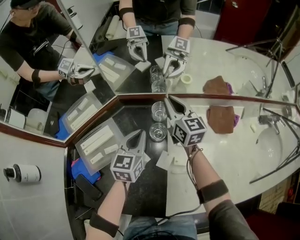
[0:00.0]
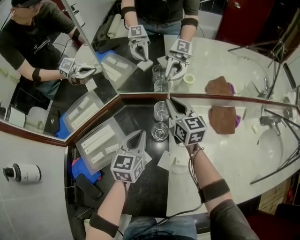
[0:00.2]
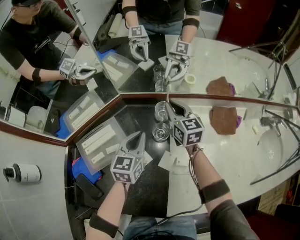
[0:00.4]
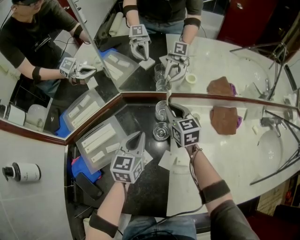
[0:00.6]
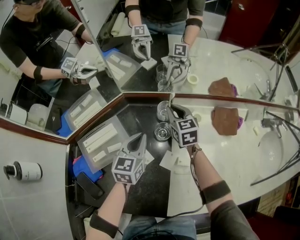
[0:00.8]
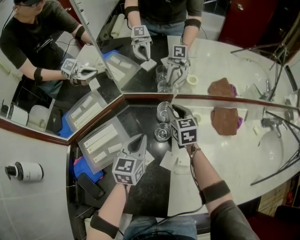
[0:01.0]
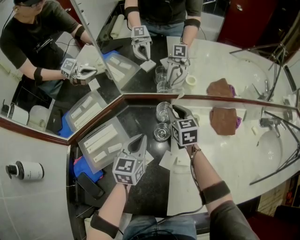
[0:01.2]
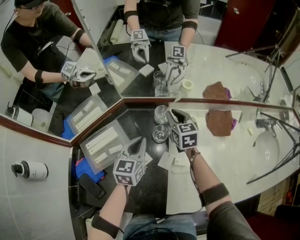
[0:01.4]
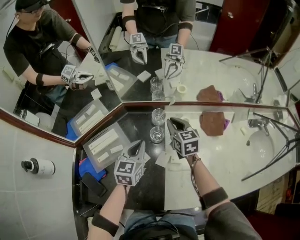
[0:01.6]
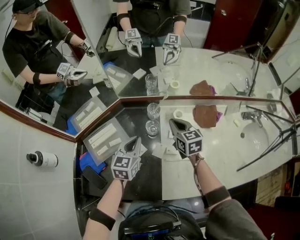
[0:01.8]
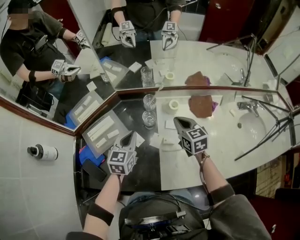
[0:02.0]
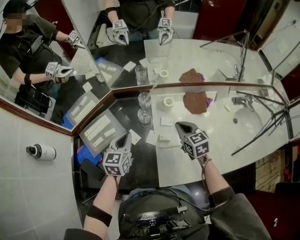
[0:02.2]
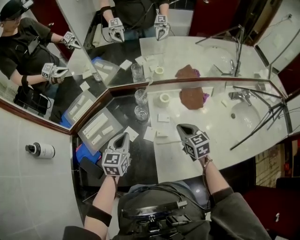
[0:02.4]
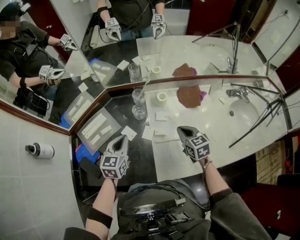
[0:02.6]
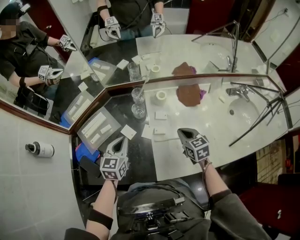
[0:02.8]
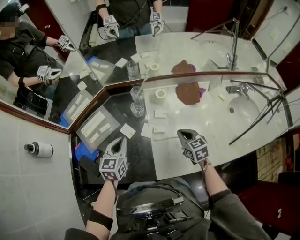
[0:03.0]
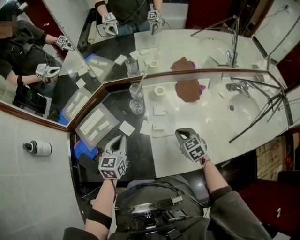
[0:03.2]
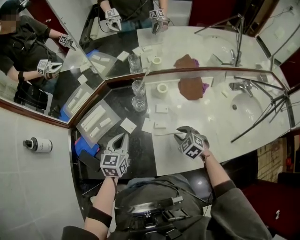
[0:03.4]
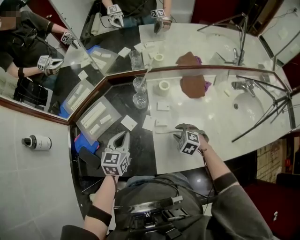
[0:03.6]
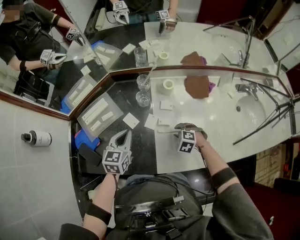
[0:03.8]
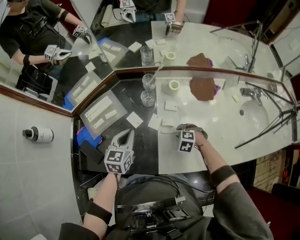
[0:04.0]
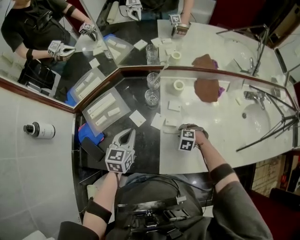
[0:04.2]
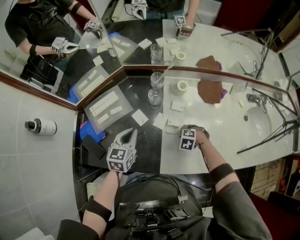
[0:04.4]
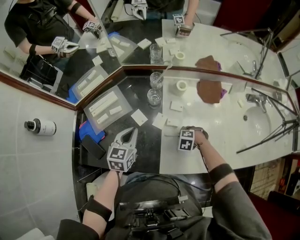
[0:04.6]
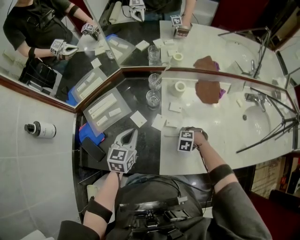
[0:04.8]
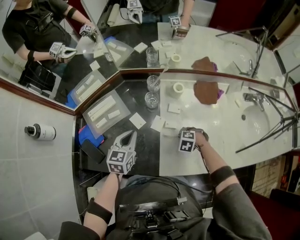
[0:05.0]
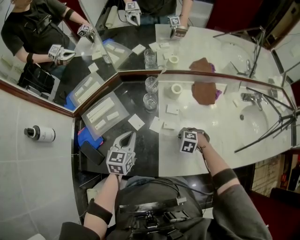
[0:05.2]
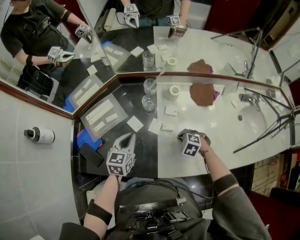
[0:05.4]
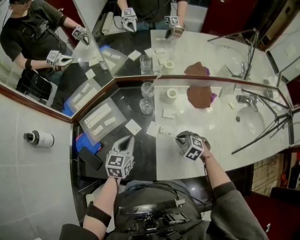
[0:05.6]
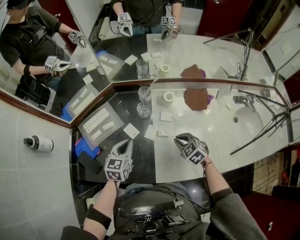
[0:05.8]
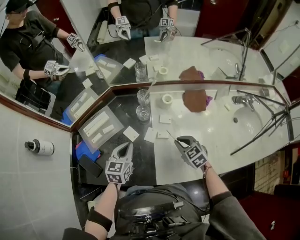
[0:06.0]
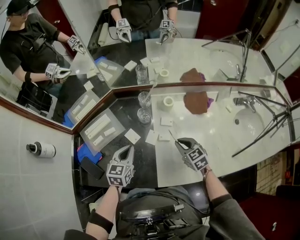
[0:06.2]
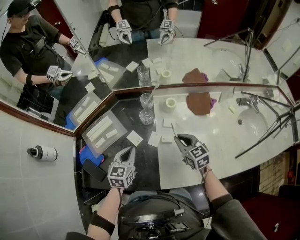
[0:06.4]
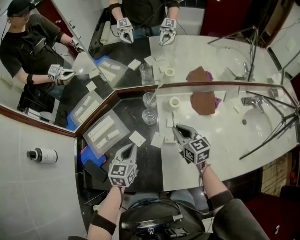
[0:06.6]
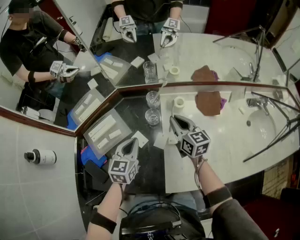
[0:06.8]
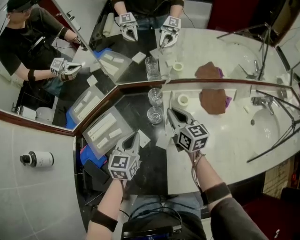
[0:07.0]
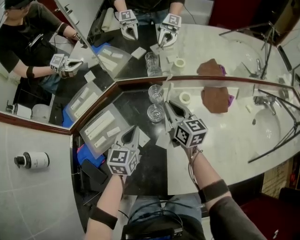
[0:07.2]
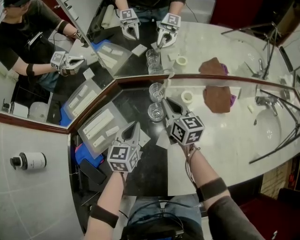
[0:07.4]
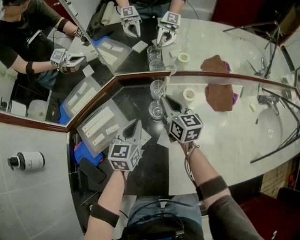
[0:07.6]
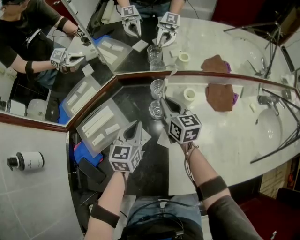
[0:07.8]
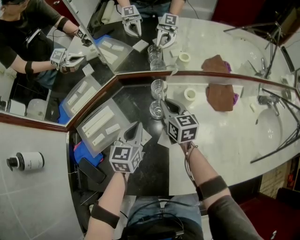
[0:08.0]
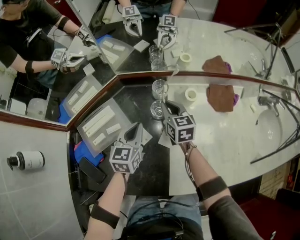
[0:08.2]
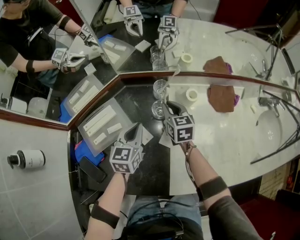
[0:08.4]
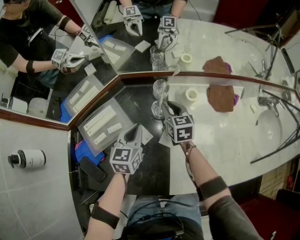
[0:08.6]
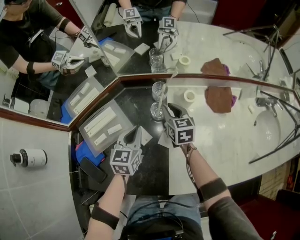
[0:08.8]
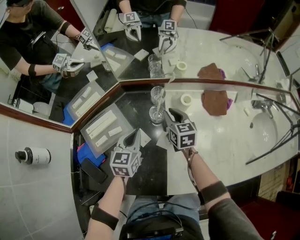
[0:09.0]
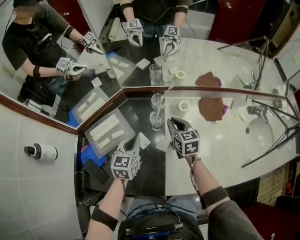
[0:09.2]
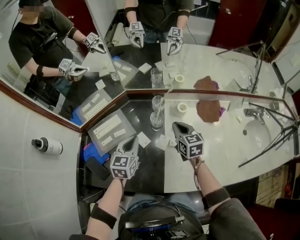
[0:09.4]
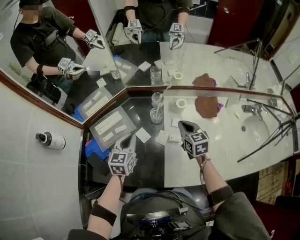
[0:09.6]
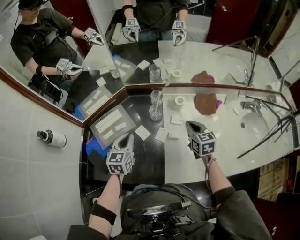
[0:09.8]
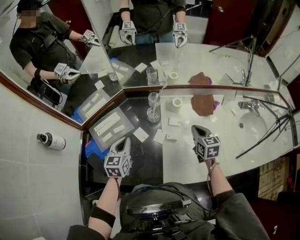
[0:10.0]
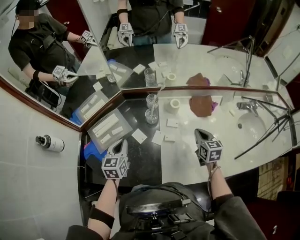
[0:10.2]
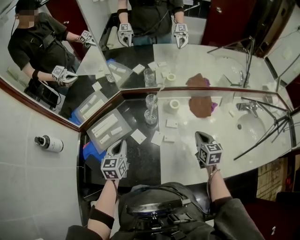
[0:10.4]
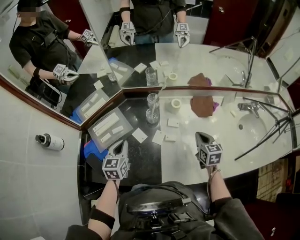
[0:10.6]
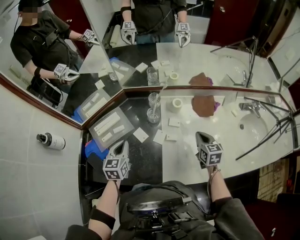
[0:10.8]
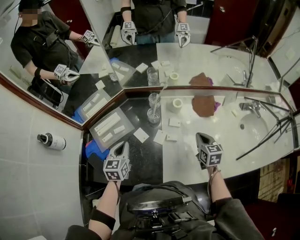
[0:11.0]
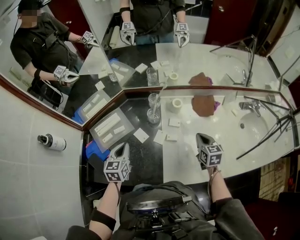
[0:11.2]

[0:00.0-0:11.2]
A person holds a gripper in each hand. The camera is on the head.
0:00.0 to 0:01.6: The left gripper moves about 5 cm, while the right gripper heads backward, covering some 5 cm, goes downward and returns, some 10 cm each way, and changes its angle by about 20 degrees.
0:01.6 to 0:03.2: The left gripper goes some 15 cm backward. Meanwhile the right gripper travels backward and to the right by about 25 cm, and swivels some 20 degrees.
0:03.2 to 0:04.8: The right gripper heads downward, covering some 15 cm, angles its fingers downward, by roughly 40 degrees, and opens, then closes again.
0:04.8 to 0:06.4: The right gripper travels upward by about 20 cm, and tips its fingers upward by approximately 50 degrees.
0:06.4 to 0:08.0: The left gripper heads forward, covering approximately 10 cm. The right gripper is displaced forward and to the left by approximately 20 cm.
0:08.0 to 0:09.6: The right gripper goes some 15 cm backward, to the right and upward. The left gripper is displaced upward and backward by approximately 10 cm.
0:09.6 to 0:11.2: The right gripper travels to the right and backward by some 15 cm. The left gripper shifts by about 5 cm.

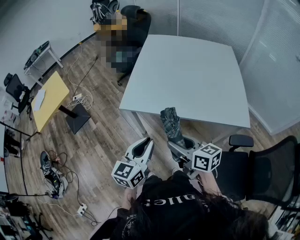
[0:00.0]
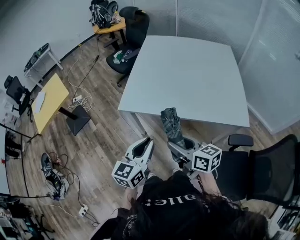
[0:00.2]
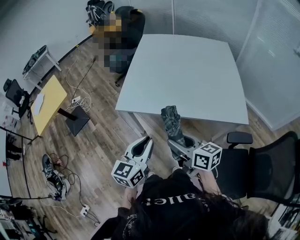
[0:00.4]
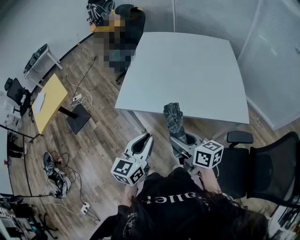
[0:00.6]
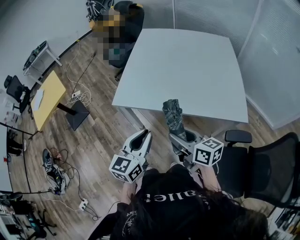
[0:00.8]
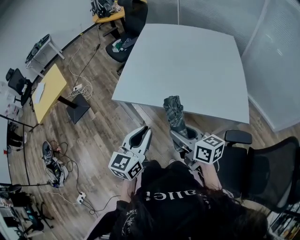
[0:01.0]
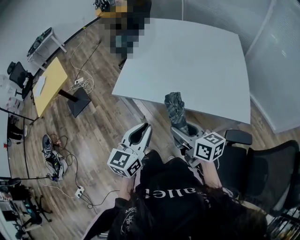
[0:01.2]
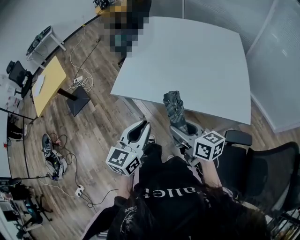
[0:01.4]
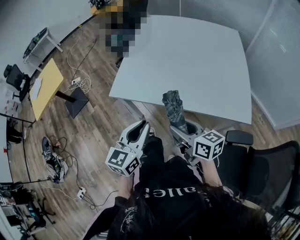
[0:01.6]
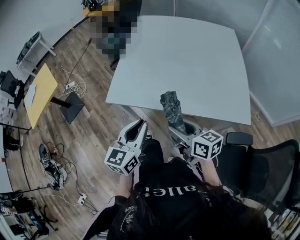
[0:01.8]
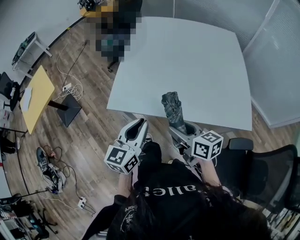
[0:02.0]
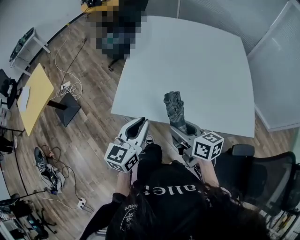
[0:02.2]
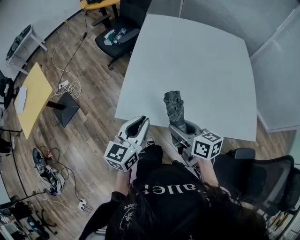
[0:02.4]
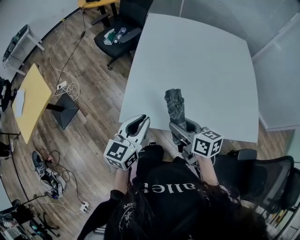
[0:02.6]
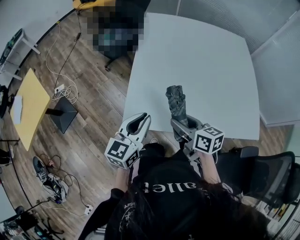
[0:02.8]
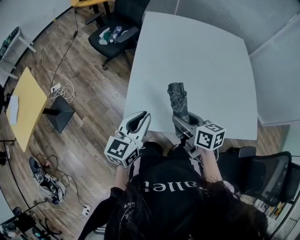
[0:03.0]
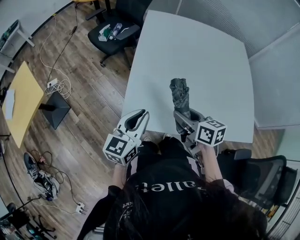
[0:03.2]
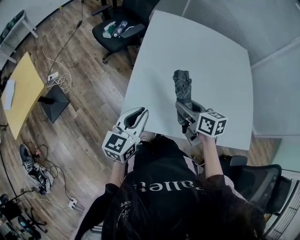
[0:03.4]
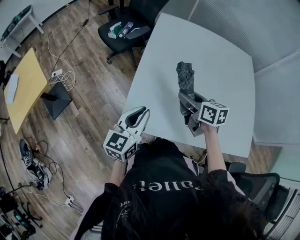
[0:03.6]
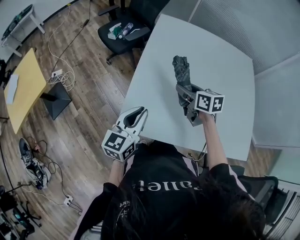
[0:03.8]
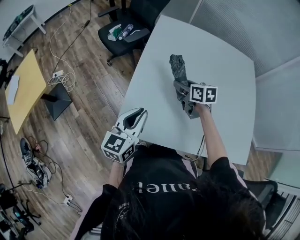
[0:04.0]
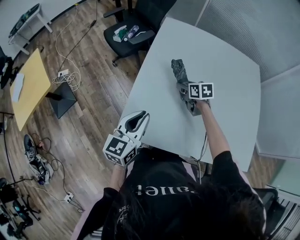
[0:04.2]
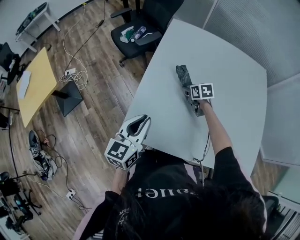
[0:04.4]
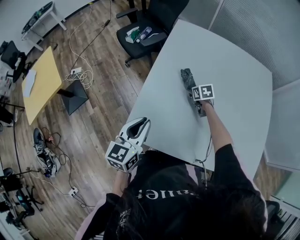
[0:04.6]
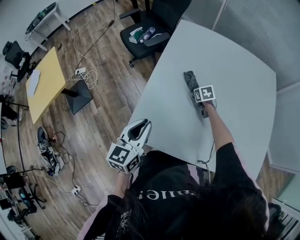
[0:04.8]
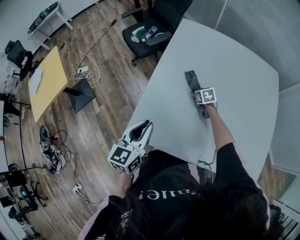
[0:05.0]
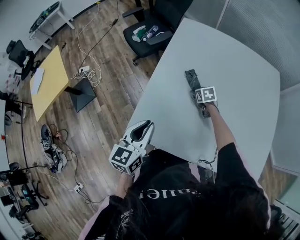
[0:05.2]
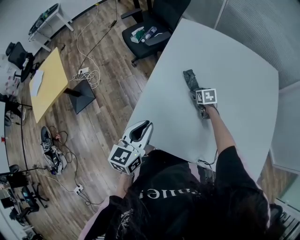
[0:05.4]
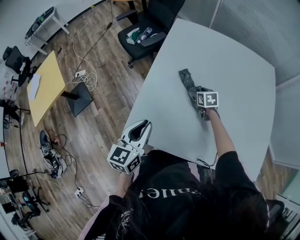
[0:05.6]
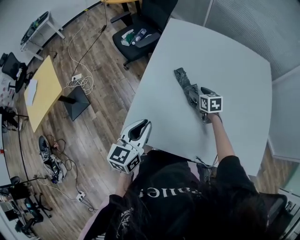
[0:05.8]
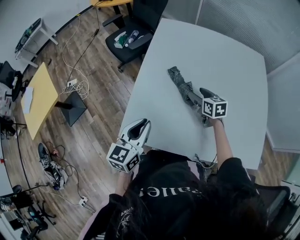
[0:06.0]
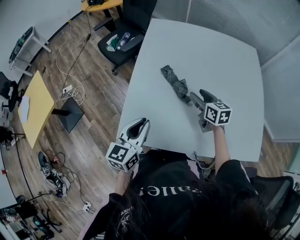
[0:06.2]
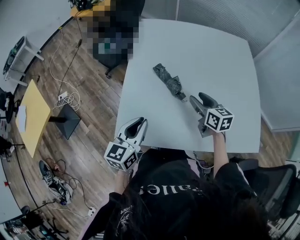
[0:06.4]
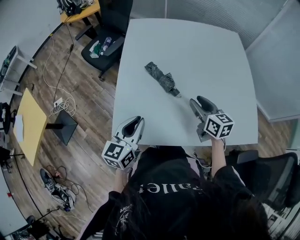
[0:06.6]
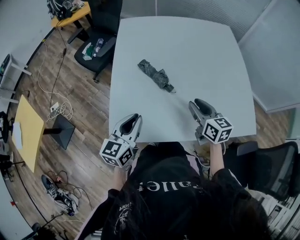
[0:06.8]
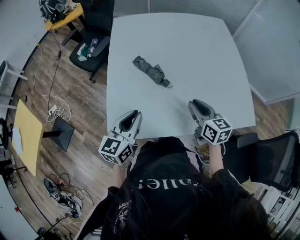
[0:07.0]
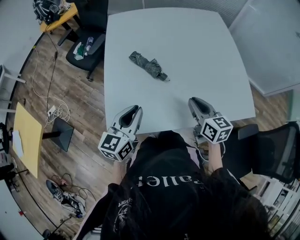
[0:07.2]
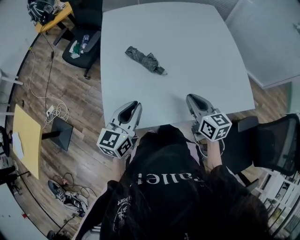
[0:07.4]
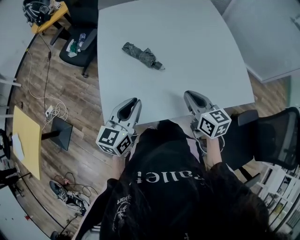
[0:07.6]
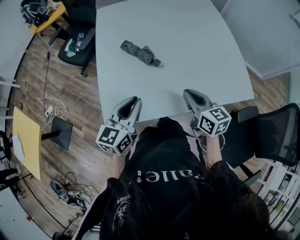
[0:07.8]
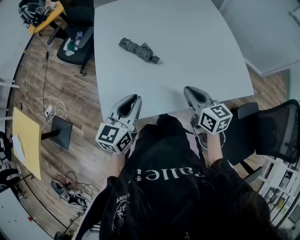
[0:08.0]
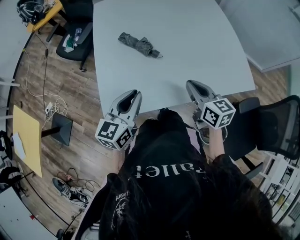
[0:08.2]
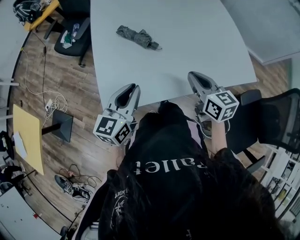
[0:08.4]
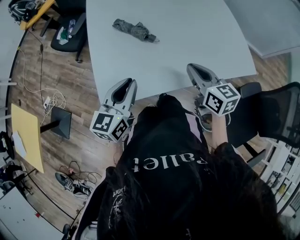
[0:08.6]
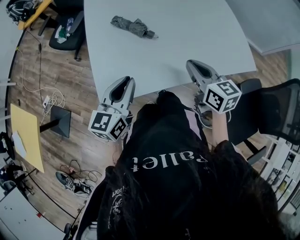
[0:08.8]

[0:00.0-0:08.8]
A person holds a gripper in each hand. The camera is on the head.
0:00.0 to 0:01.4: Both grippers travel together to the right, roughly 10 cm.
0:01.4 to 0:03.0: Both grippers travel together forward and to the left, some 30 cm.
0:03.0 to 0:04.4: The right gripper heads forward and downward, covering approximately 35 cm, and changes its angle by roughly 30 degrees. The left gripper goes about 5 cm forward.
0:04.4 to 0:05.8: The right gripper travels downward and back again, roughly 5 cm each way.
0:05.8 to 0:07.4: The right gripper goes roughly 30 cm backward and upward, changes its angle by approximately 30 degrees, and closes. Meanwhile the left gripper travels to the right by some 5 cm, and swivels approximately 30 degrees.
0:07.4 to 0:08.8: The grippers move only a little.

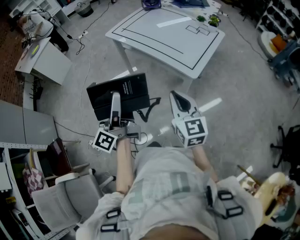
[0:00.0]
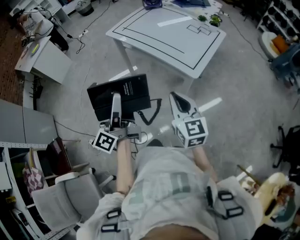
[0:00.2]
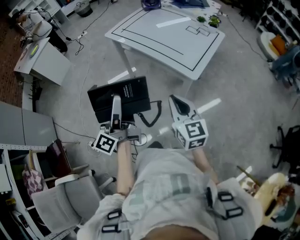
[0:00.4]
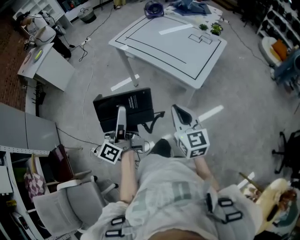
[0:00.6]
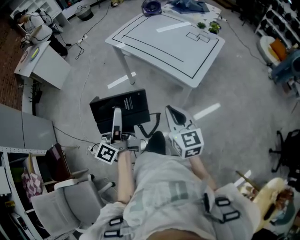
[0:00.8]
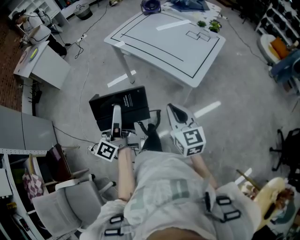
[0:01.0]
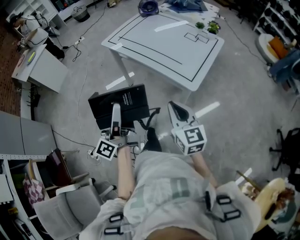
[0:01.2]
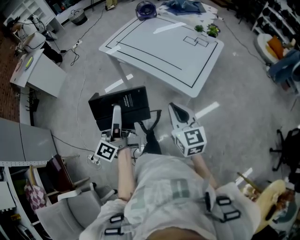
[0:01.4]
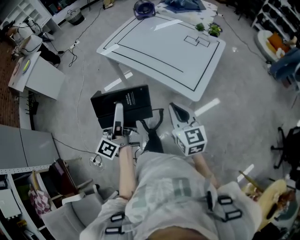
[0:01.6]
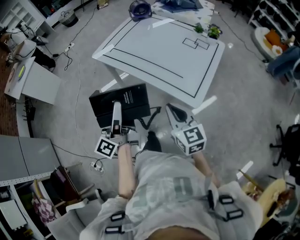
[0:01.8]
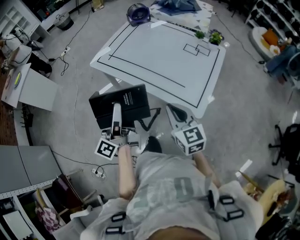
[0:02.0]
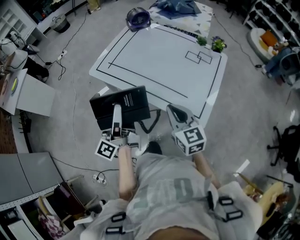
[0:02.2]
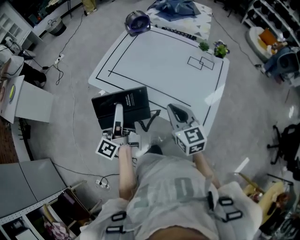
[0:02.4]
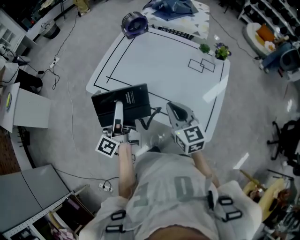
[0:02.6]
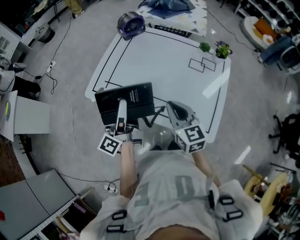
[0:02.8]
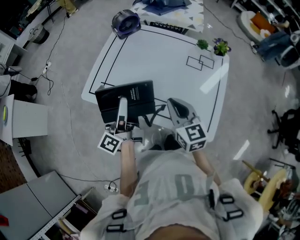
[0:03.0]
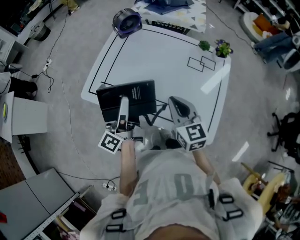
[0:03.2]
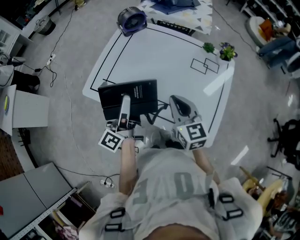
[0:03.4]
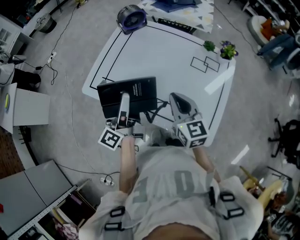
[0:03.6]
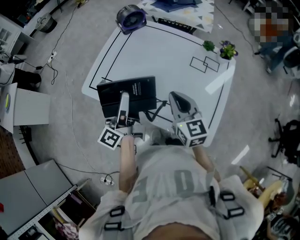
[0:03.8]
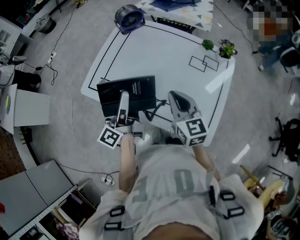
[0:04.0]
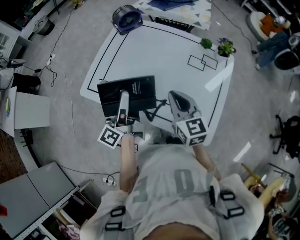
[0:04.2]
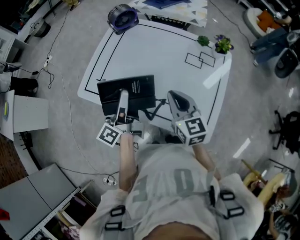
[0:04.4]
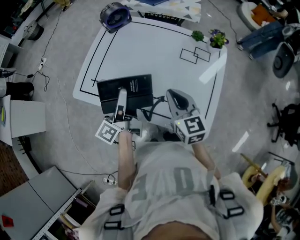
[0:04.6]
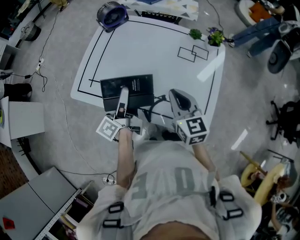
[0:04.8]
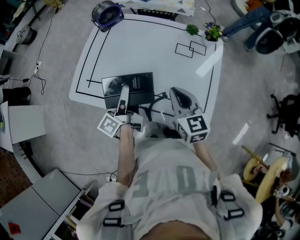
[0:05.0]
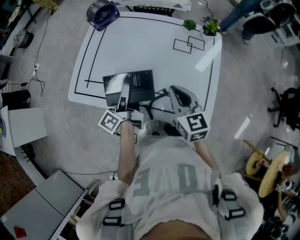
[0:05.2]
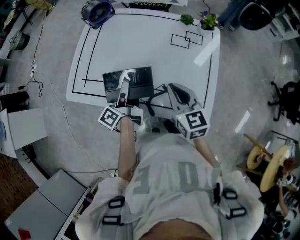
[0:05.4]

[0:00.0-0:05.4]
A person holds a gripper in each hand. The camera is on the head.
0:00.0 to 0:01.4: Both grippers travel together forward, approximately 10 cm.
0:01.4 to 0:02.8: Both grippers move forward, some 40 cm.
0:02.8 to 0:04.0: The right gripper shifts by roughly 5 cm. The left gripper moves some 5 cm.
0:04.0 to 0:05.4: The left gripper heads downward and to the right, covering roughly 10 cm, and rotates approximately 20 degrees, while the right gripper ends up about 5 cm from where it was.
